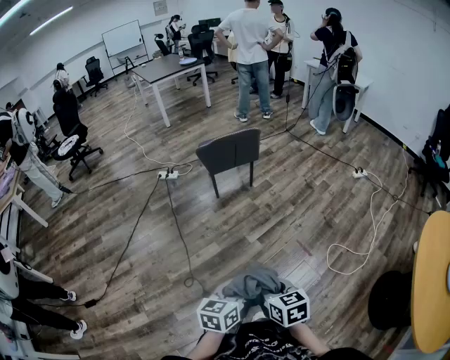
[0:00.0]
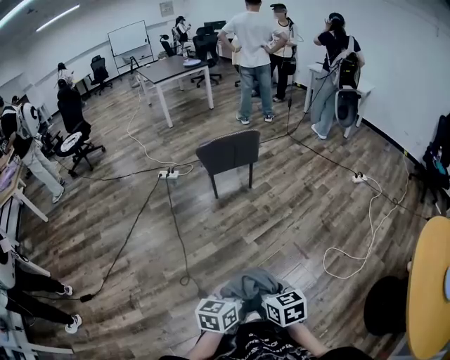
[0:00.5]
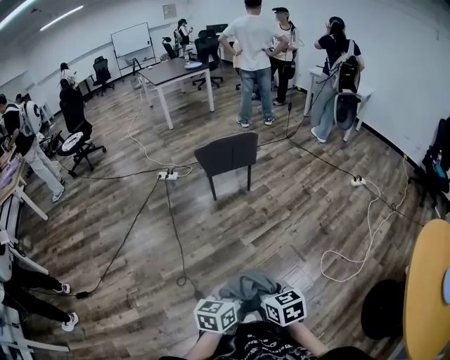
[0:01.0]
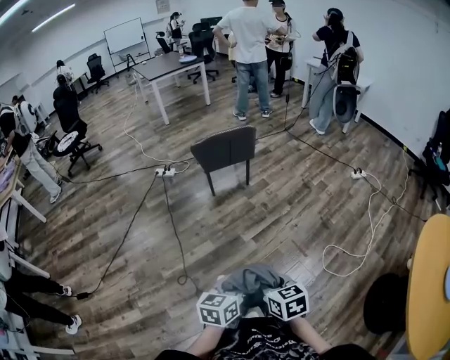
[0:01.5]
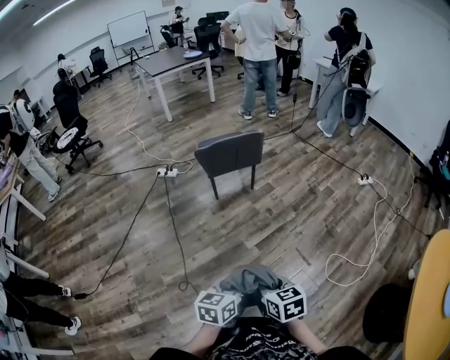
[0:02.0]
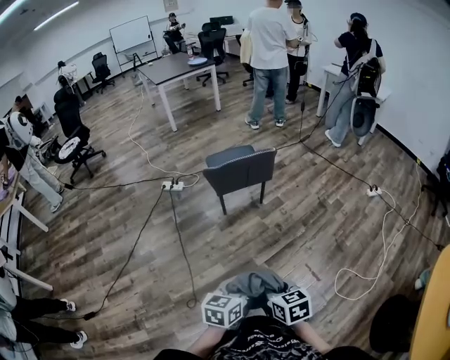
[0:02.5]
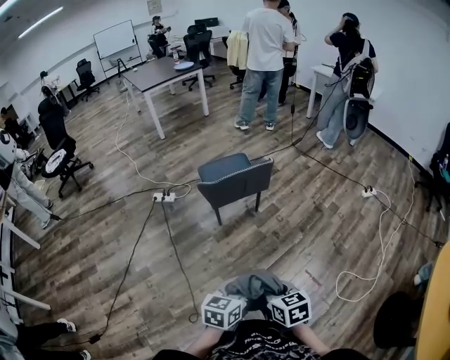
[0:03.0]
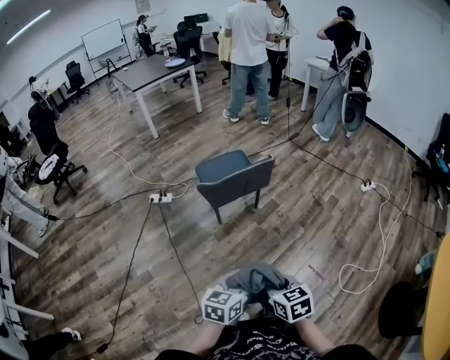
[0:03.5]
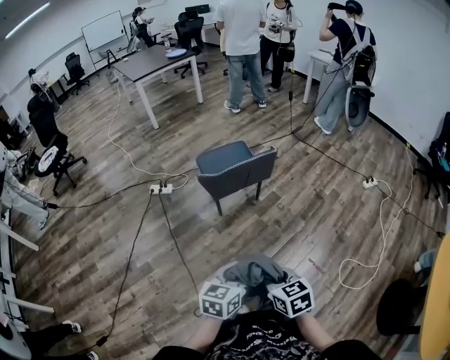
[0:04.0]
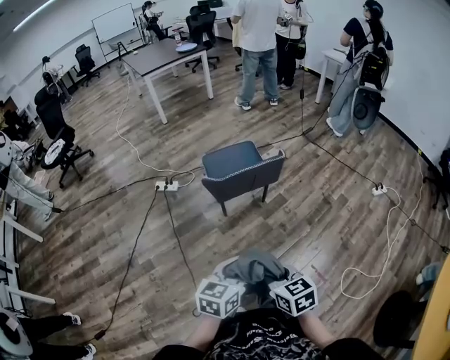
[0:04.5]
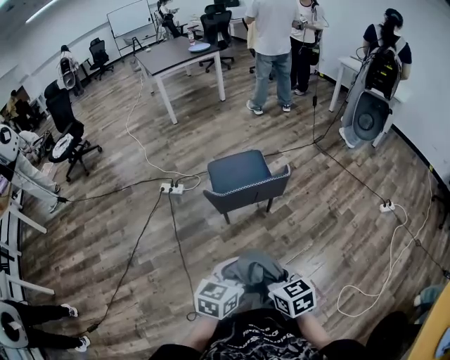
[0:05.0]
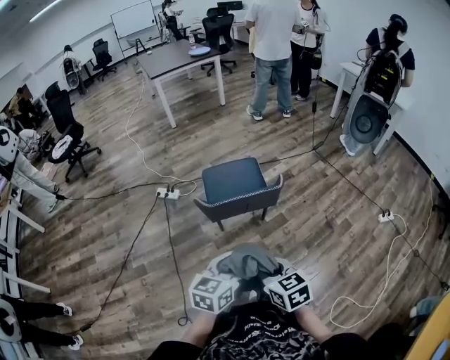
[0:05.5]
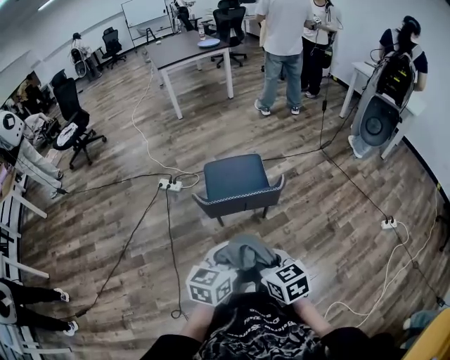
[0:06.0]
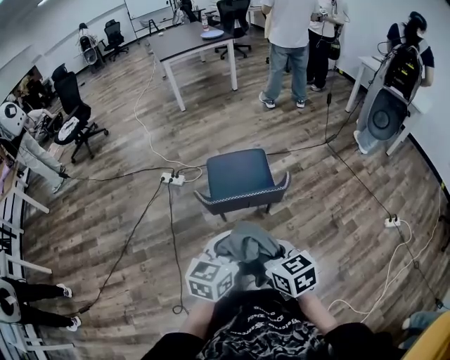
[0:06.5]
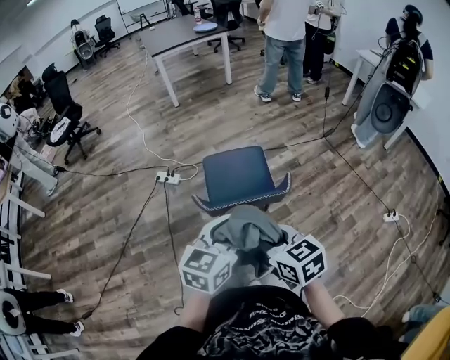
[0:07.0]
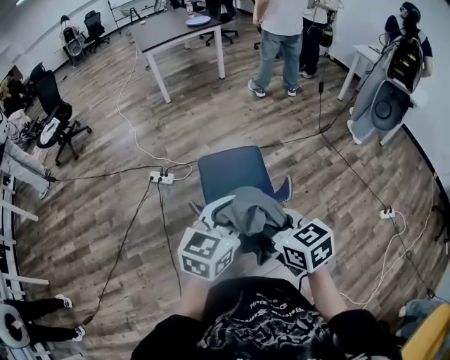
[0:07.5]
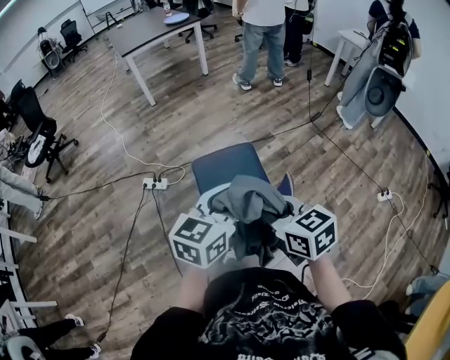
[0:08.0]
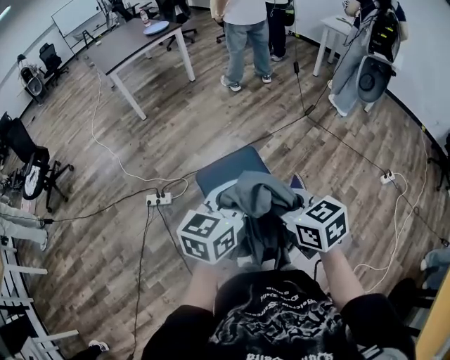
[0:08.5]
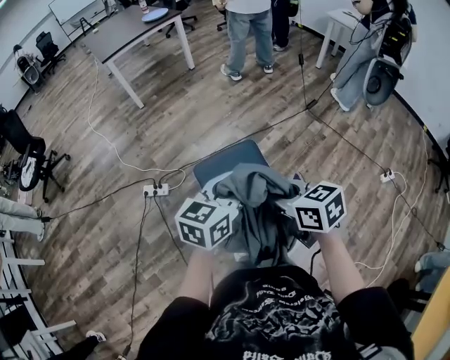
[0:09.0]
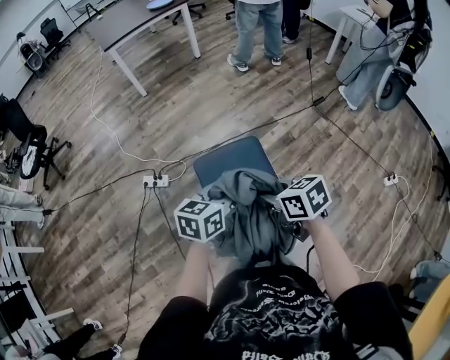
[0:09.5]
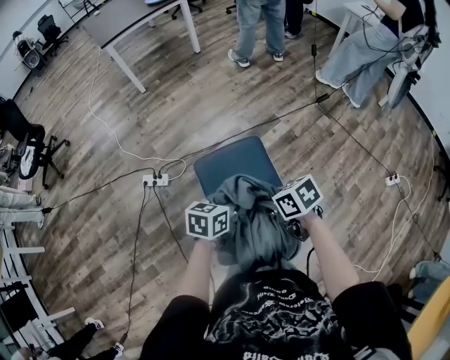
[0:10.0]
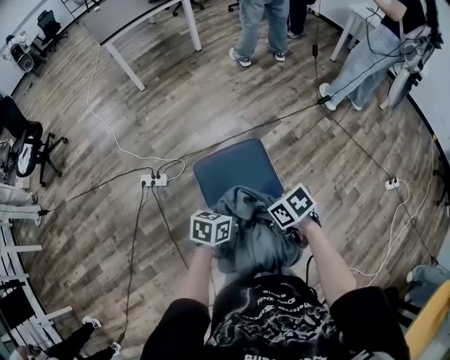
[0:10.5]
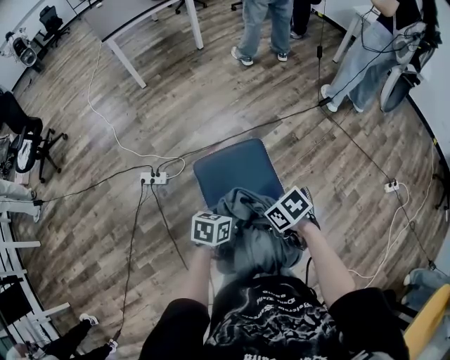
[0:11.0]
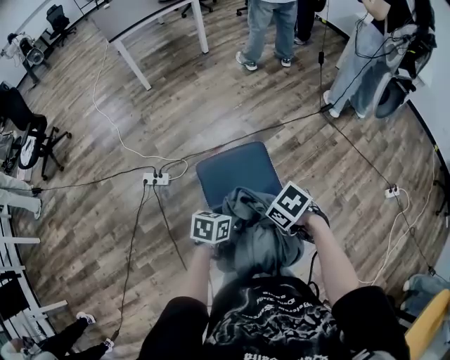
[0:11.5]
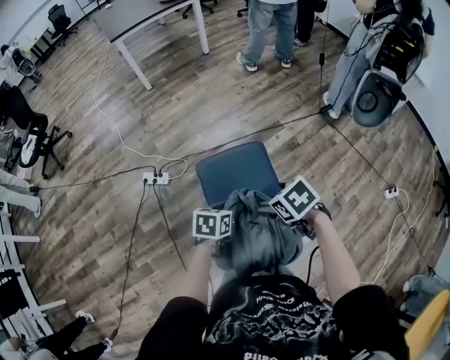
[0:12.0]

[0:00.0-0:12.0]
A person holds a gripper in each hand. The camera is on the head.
0:00.0 to 0:02.0: Both grippers travel together forward, approximately 10 cm.
0:02.0 to 0:04.0: The grippers both shift forward and to the left by about 25 cm.
0:04.0 to 0:06.0: Both grippers travel together forward and to the right, approximately 25 cm.
0:06.0 to 0:08.0: The left gripper shifts roughly 25 cm forward and upward. The right gripper is displaced forward by approximately 20 cm.
0:08.0 to 0:10.0: Both grippers move downward and forward, approximately 20 cm. The left gripper swivels some 30 degrees. Meanwhile the right gripper rotates approximately 30 degrees.
0:10.0 to 0:12.0: The left gripper goes roughly 5 cm downward, and opens and closes again; the right gripper turns by approximately 30 degrees, and opens.

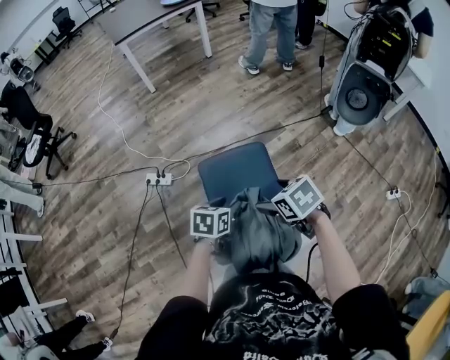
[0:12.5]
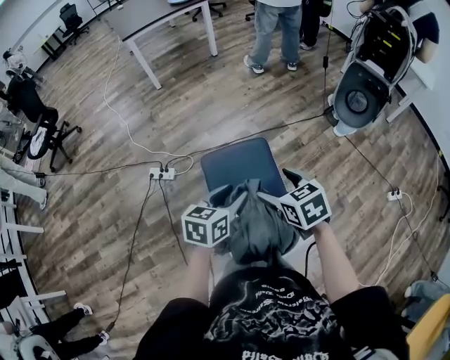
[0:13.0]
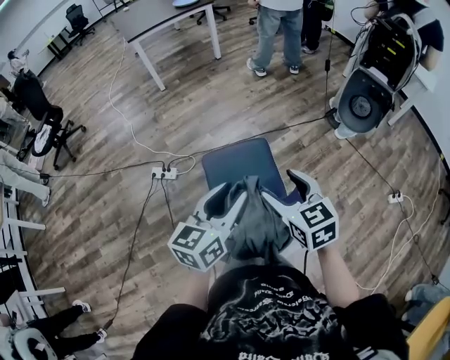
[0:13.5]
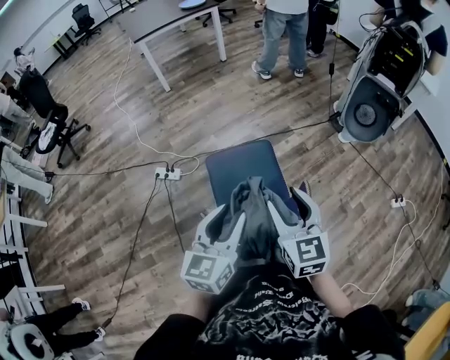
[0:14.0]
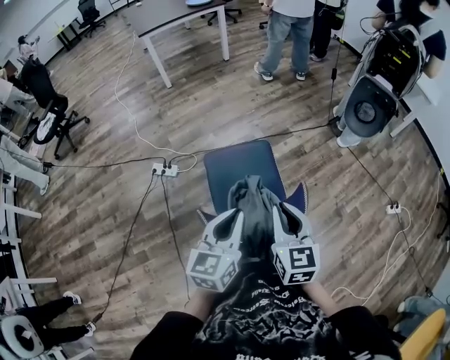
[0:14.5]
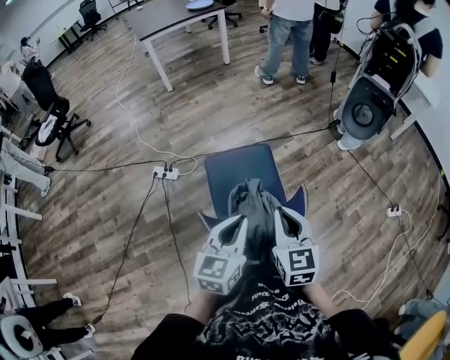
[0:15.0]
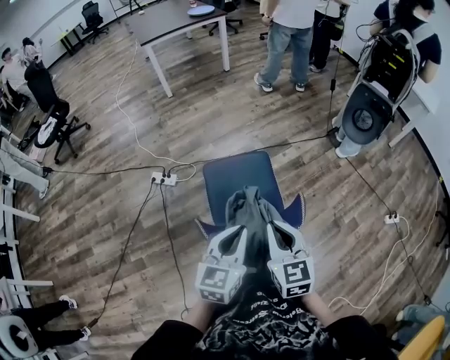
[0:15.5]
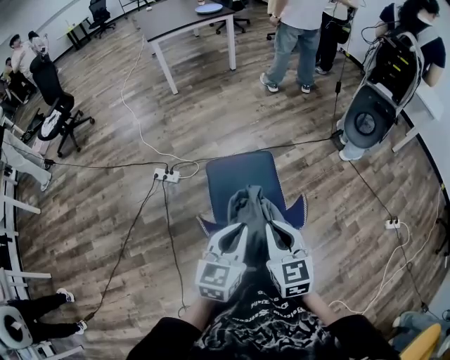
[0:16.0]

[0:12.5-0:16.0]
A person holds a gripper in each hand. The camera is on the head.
0:12.5 to 0:14.5: The left gripper moves upward and backward, some 20 cm, angles its fingers upward, by roughly 30 degrees, and closes up, while the right gripper travels backward and upward by some 15 cm, tips its fingers upward by some 40 degrees, and closes up.
0:14.5 to 0:16.0: There are only small adjustments of the grippers.

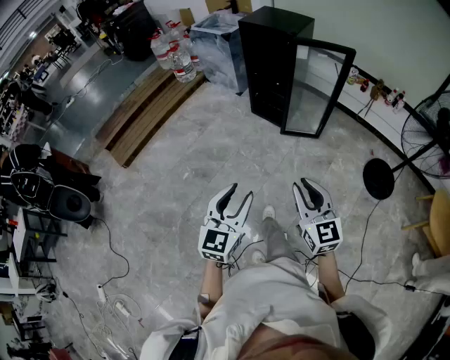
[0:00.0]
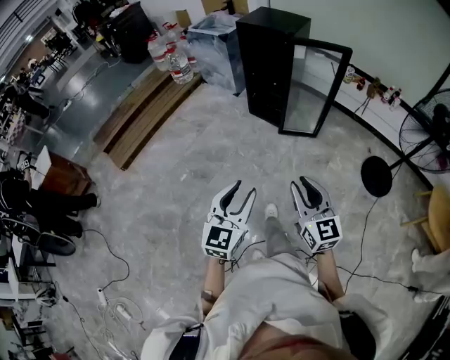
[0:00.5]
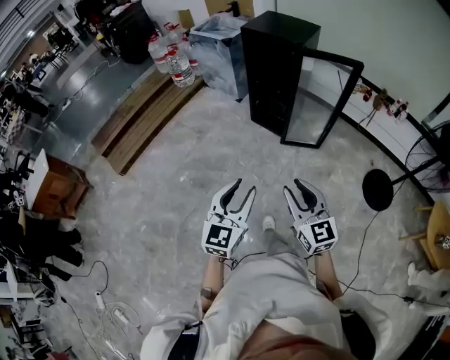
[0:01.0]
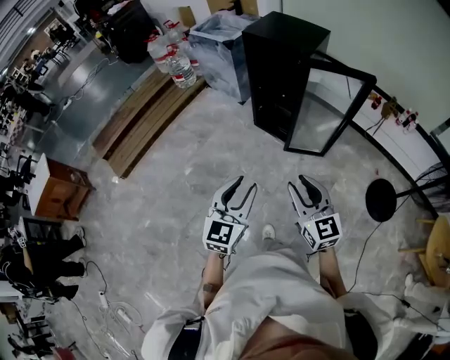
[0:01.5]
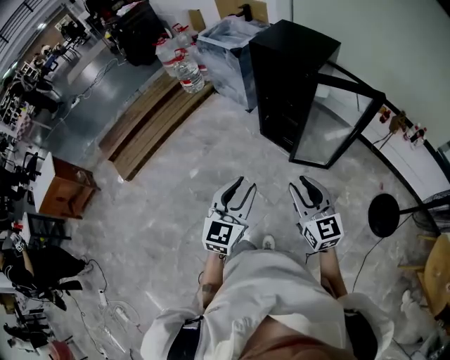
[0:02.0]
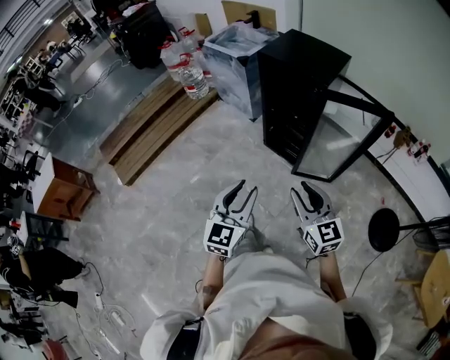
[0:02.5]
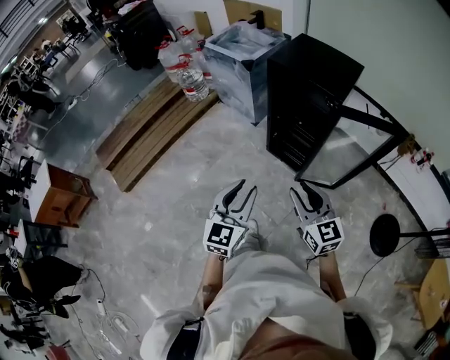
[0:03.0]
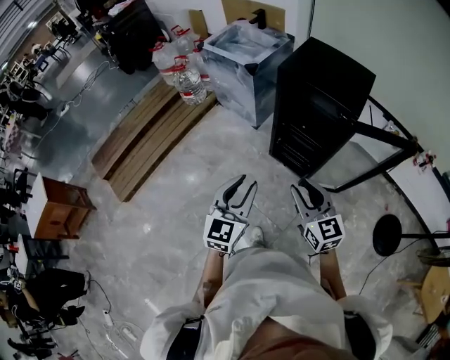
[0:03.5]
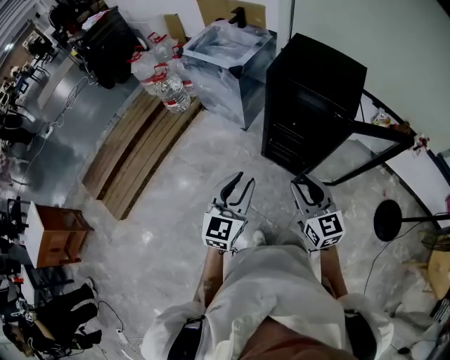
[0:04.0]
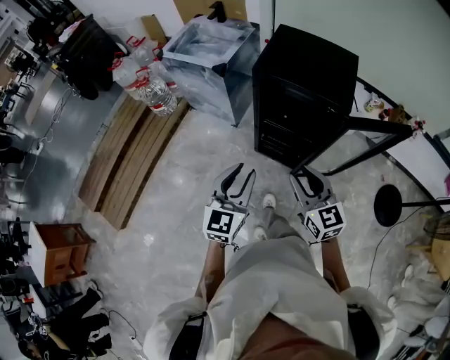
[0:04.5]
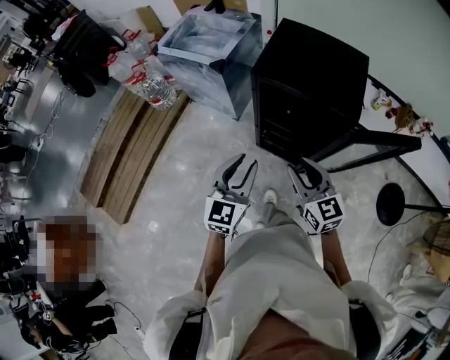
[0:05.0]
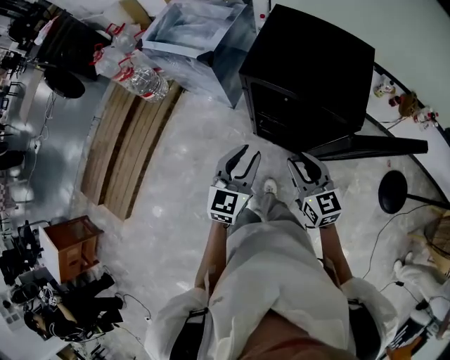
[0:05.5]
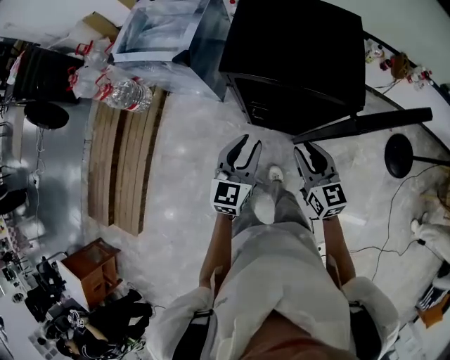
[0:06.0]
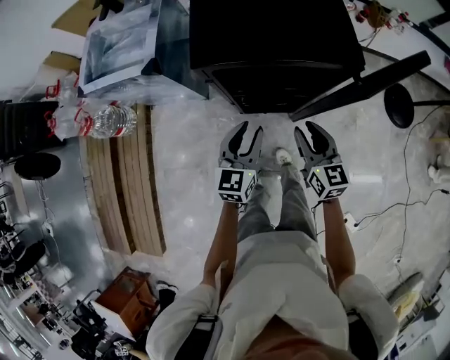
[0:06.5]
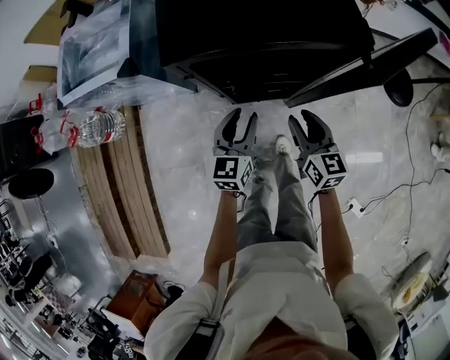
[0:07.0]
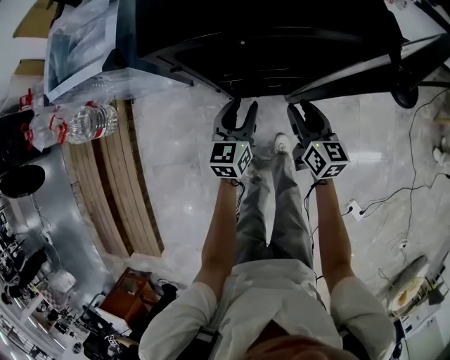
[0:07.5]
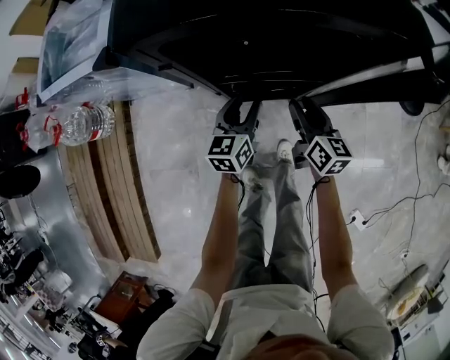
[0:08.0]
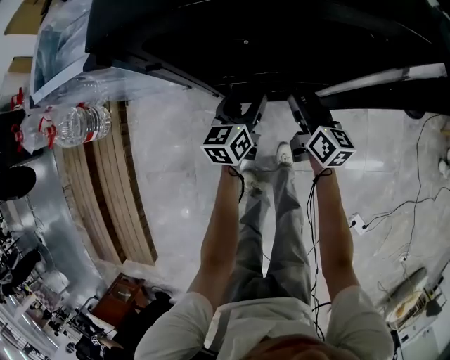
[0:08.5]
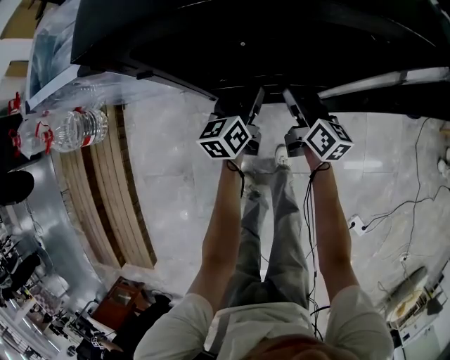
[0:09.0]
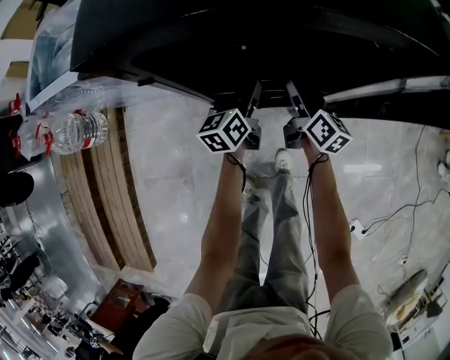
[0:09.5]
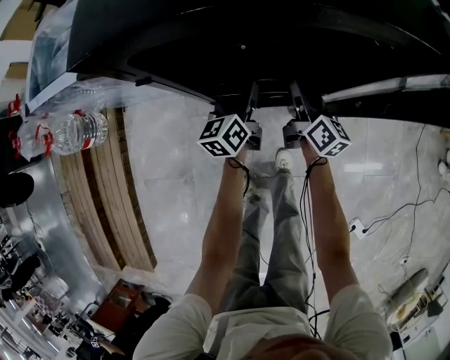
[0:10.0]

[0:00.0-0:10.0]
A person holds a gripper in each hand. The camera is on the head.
0:00.0 to 0:02.0: Both grippers travel together forward, roughly 30 cm.
0:02.0 to 0:04.0: The left gripper moves forward, about 30 cm, while the right gripper is displaced forward and to the left by about 30 cm.
0:04.0 to 0:06.0: The grippers both shift forward and downward by approximately 25 cm. The right gripper swivels about 20 degrees.
0:06.0 to 0:08.0: The two grippers go about 30 cm downward. The right gripper changes its angle by approximately 30 degrees. Meanwhile the left gripper swivels about 20 degrees.
0:08.0 to 0:10.0: Both grippers travel together forward, some 10 cm. The right gripper opens, then closes again.

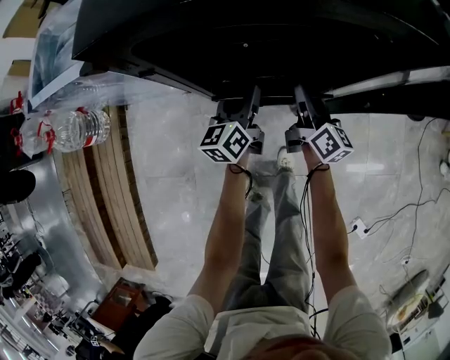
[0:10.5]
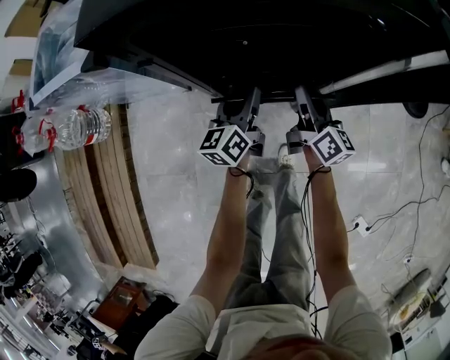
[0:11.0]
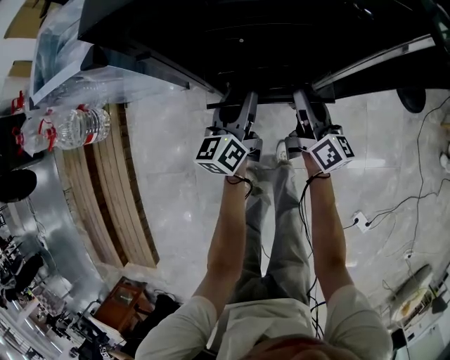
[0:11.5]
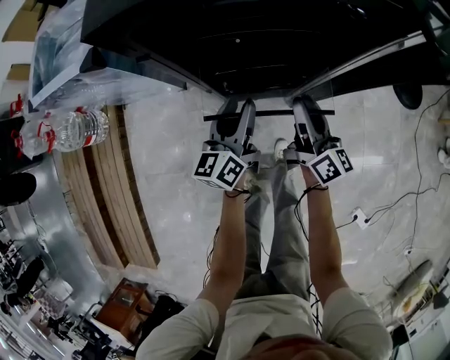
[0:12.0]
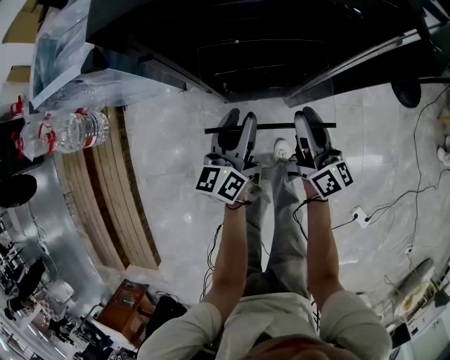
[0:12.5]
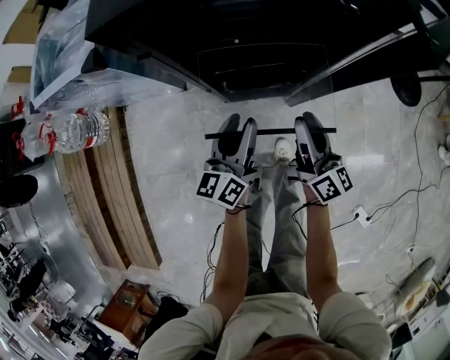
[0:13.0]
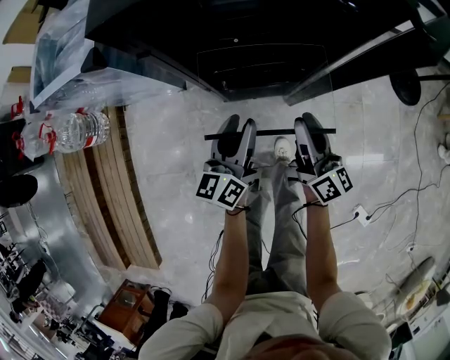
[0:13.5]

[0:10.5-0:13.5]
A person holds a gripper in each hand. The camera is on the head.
0:10.5 to 0:12.0: Both grippers move backward and upward, roughly 10 cm.
0:12.0 to 0:13.5: Both grippers travel together backward, some 5 cm.
